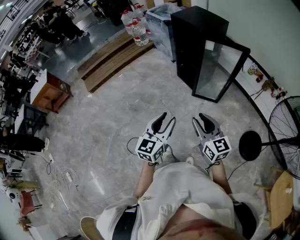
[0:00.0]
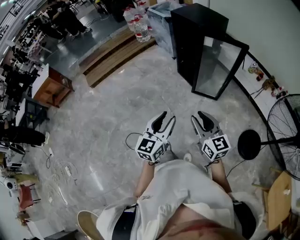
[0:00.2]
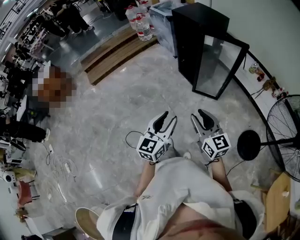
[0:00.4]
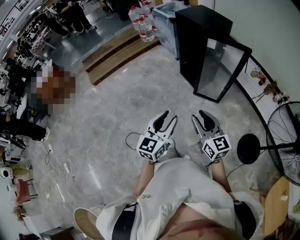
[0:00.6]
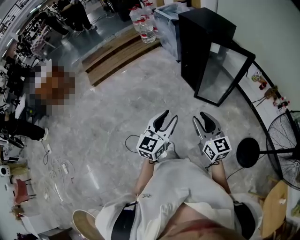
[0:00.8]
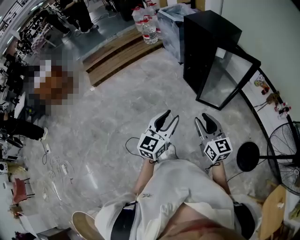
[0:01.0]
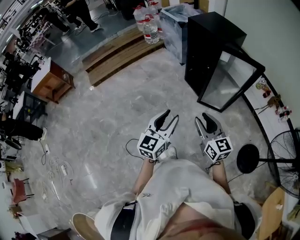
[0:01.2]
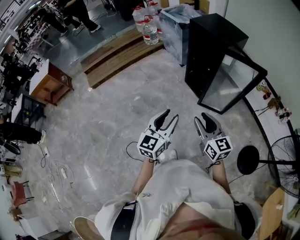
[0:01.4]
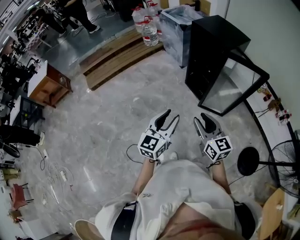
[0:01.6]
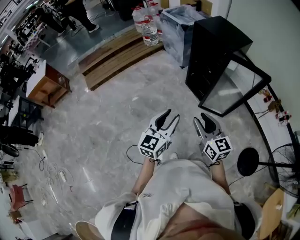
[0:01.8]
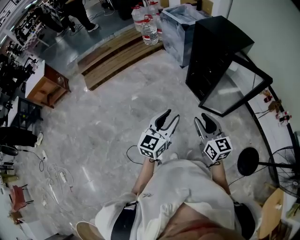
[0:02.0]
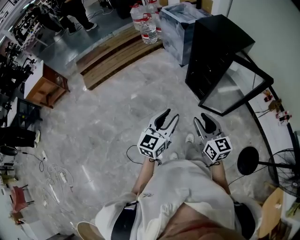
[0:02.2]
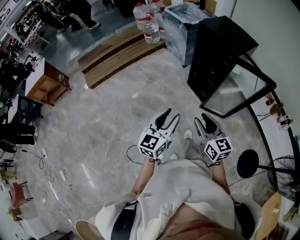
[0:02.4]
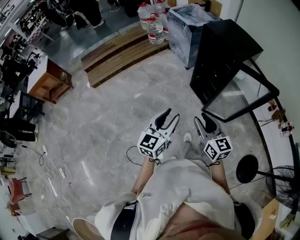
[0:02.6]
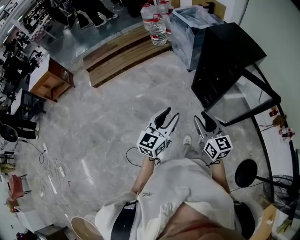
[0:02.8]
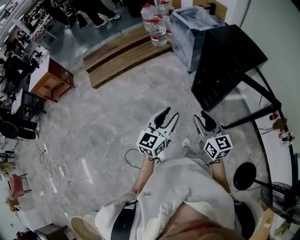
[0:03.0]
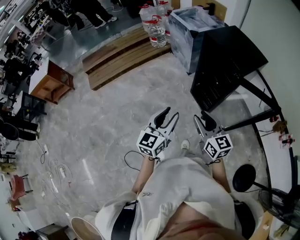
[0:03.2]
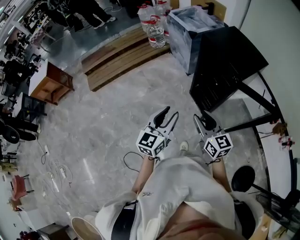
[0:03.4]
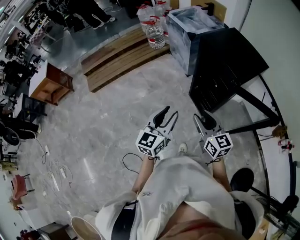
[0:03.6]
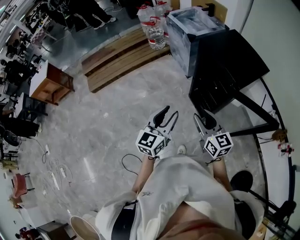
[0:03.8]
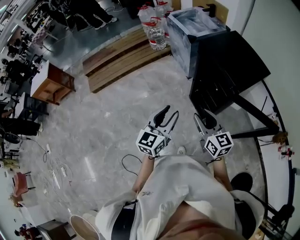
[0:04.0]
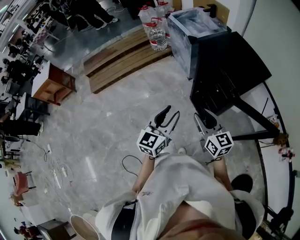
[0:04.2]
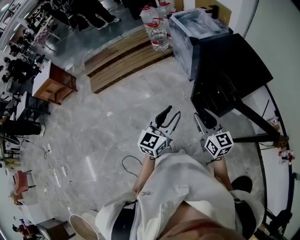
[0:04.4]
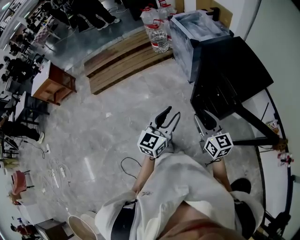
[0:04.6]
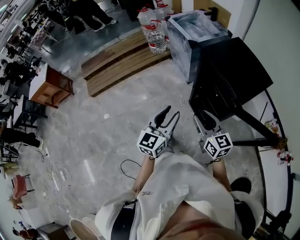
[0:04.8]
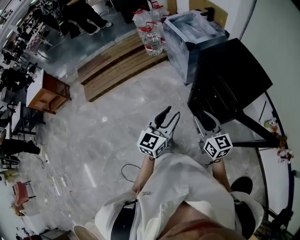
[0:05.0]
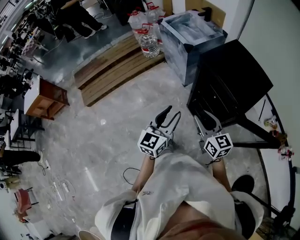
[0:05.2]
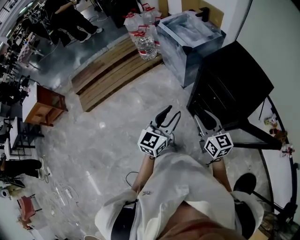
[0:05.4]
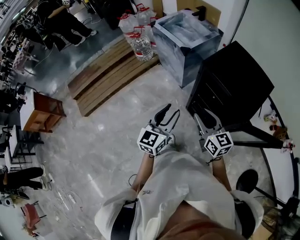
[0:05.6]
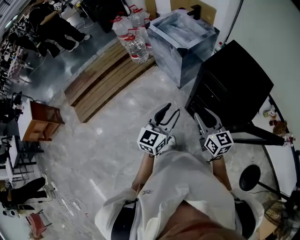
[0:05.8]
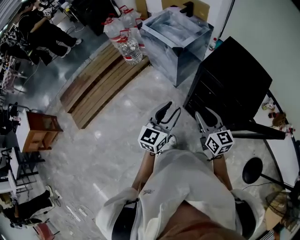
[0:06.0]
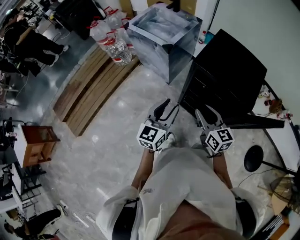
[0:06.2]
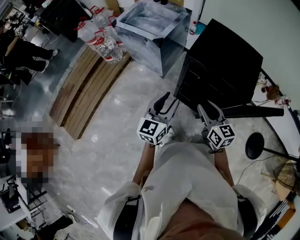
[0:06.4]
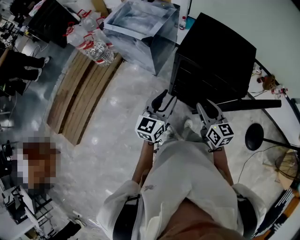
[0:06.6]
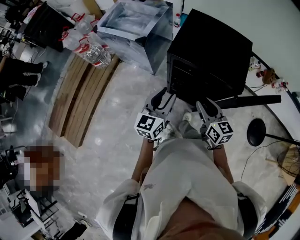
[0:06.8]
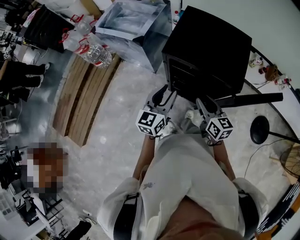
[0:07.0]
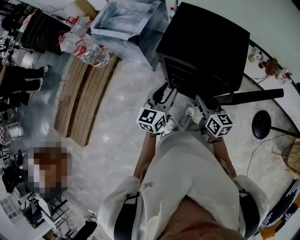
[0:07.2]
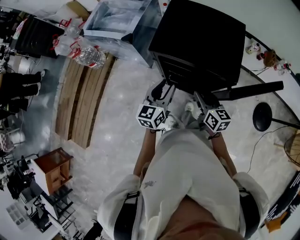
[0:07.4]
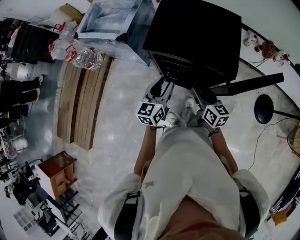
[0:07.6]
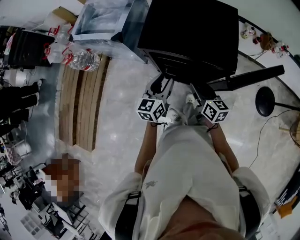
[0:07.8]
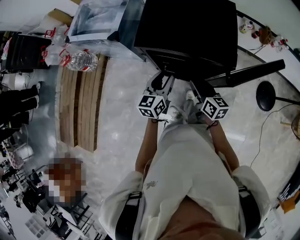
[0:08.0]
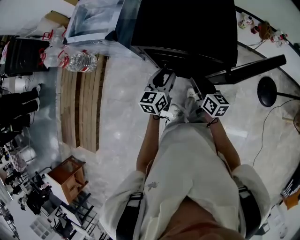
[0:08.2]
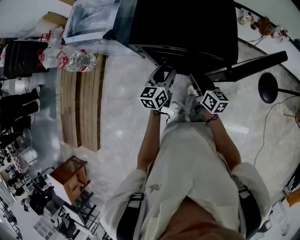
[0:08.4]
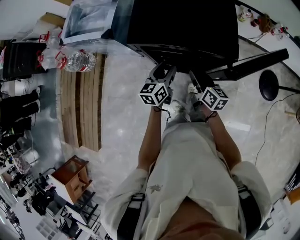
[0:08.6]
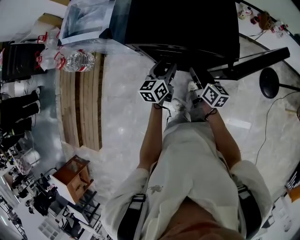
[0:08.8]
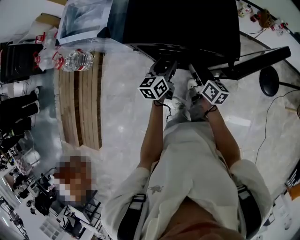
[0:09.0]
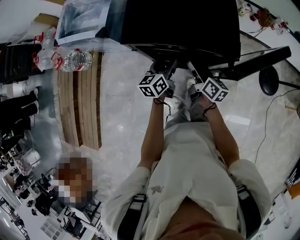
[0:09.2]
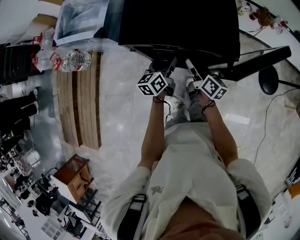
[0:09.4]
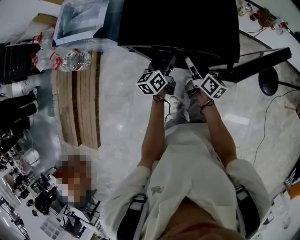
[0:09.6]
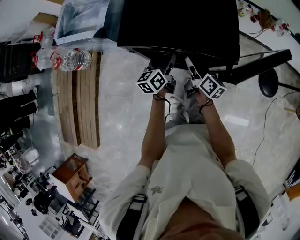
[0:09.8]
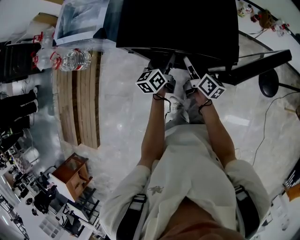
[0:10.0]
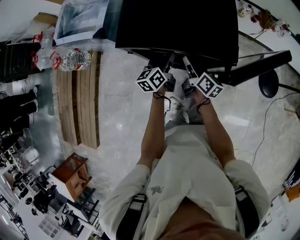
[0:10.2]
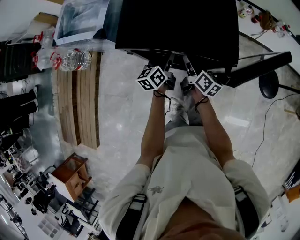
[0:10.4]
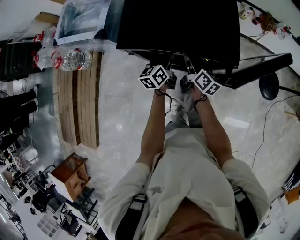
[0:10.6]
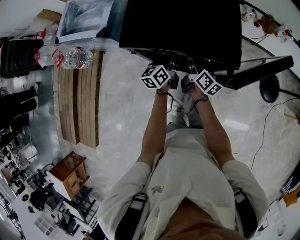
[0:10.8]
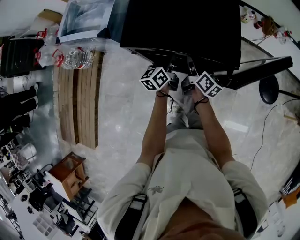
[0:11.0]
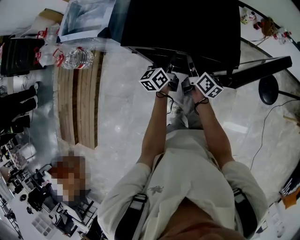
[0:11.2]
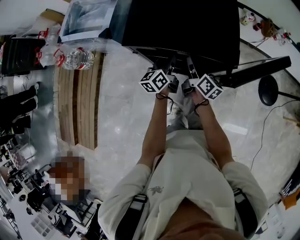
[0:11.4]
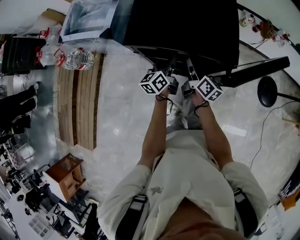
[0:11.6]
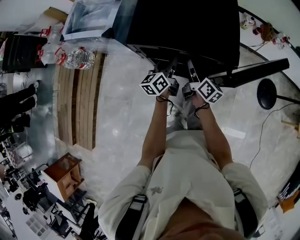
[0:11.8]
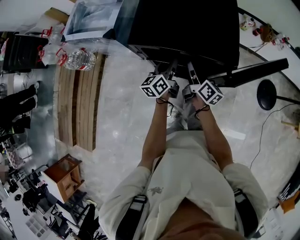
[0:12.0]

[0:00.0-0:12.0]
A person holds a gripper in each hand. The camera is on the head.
0:00.0 to 0:01.6: The grippers both shift forward and to the left by approximately 15 cm.
0:01.6 to 0:03.0: Both grippers travel together forward, roughly 15 cm.
0:03.0 to 0:04.4: Both grippers travel together forward and to the right, about 20 cm.
0:04.4 to 0:06.0: The grippers both shift forward by approximately 20 cm. The left gripper swivels approximately 20 degrees. The right gripper changes its angle by approximately 20 degrees.
0:06.0 to 0:07.6: The left gripper shifts about 20 cm to the right, downward and forward, and rotates about 20 degrees; the right gripper moves to the right and downward, some 20 cm, and rotates approximately 30 degrees.
0:07.6 to 0:09.0: The right gripper is displaced downward by about 5 cm, and turns by some 20 degrees. Meanwhile the left gripper heads downward and forward, covering approximately 10 cm.
0:09.0 to 0:10.4: The grippers both shift forward by some 5 cm.
0:10.4 to 0:12.0: The left gripper closes; the right gripper closes.

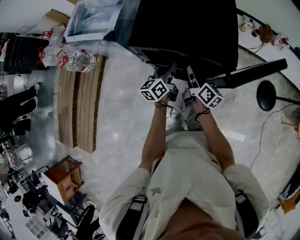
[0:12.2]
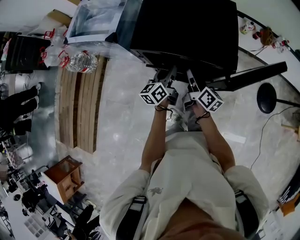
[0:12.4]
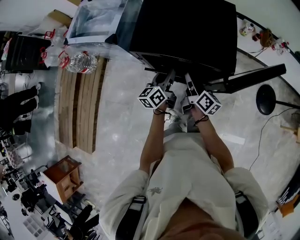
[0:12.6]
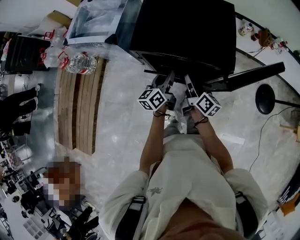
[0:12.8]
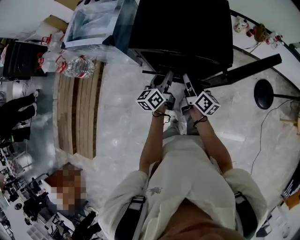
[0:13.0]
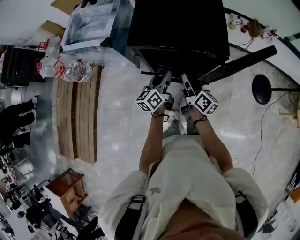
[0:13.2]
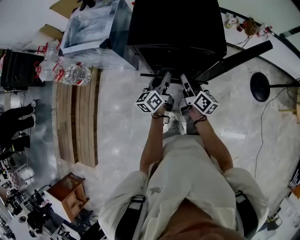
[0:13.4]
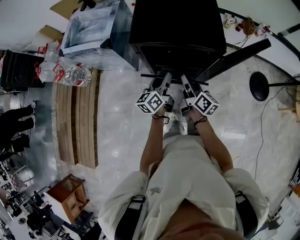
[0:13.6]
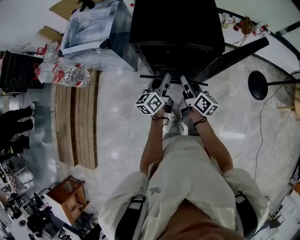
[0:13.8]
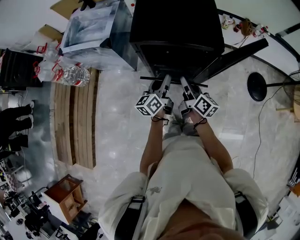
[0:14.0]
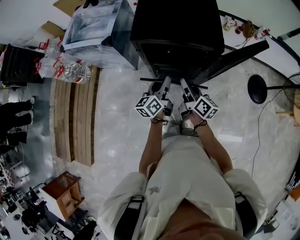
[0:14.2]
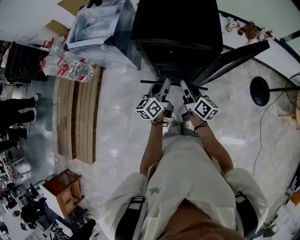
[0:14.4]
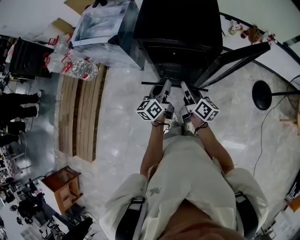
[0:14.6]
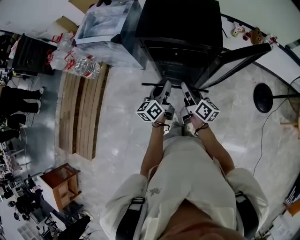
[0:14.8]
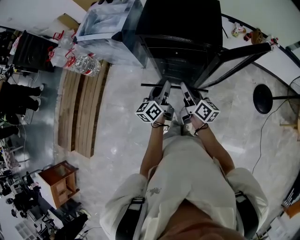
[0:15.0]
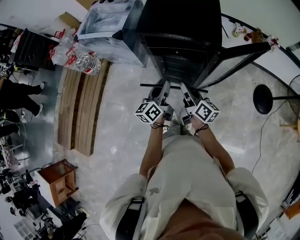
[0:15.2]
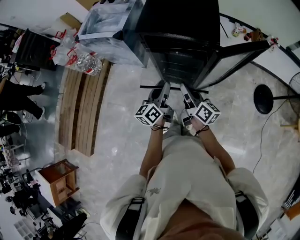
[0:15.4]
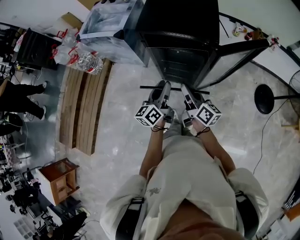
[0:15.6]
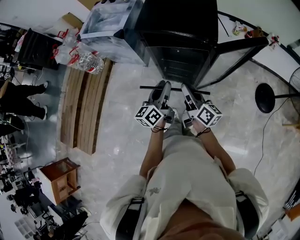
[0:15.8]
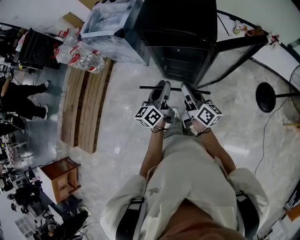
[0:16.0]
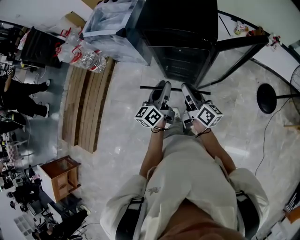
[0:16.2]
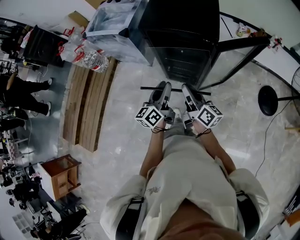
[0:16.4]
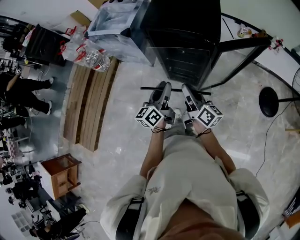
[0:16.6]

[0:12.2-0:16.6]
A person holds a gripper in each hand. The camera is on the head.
0:12.2 to 0:13.6: The two grippers go roughly 10 cm backward.
0:13.6 to 0:15.2: The grippers both shift backward by about 10 cm.
0:15.2 to 0:16.6: The grippers both shift backward by roughly 5 cm.

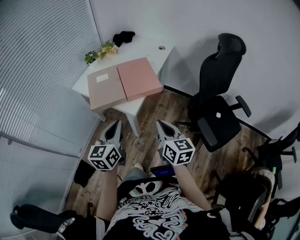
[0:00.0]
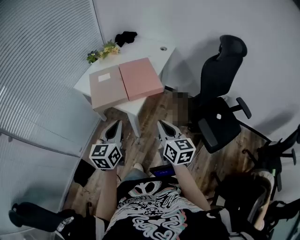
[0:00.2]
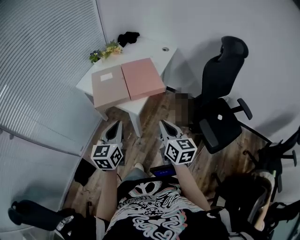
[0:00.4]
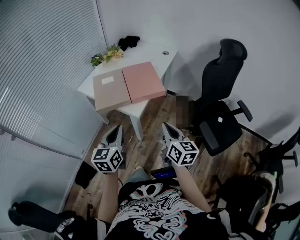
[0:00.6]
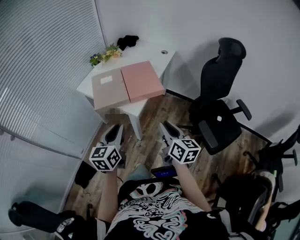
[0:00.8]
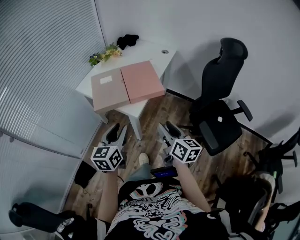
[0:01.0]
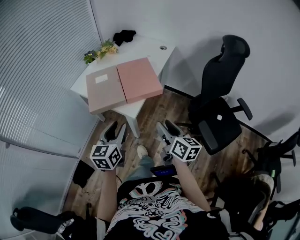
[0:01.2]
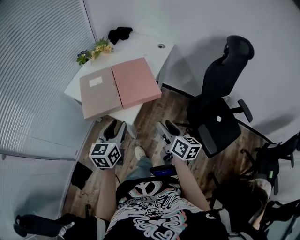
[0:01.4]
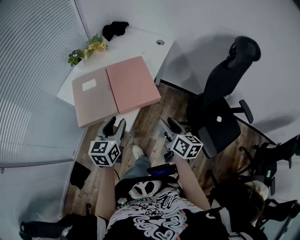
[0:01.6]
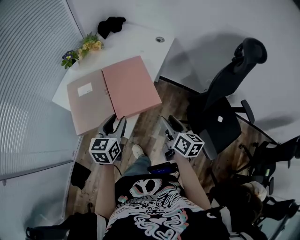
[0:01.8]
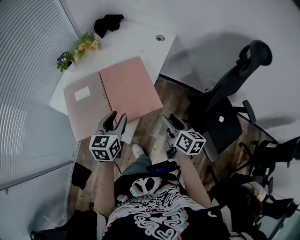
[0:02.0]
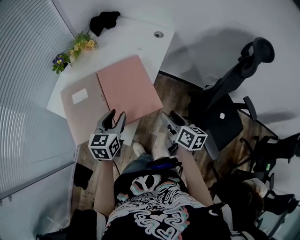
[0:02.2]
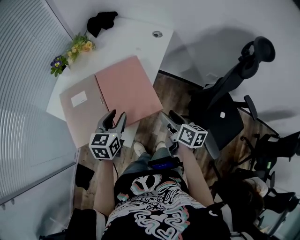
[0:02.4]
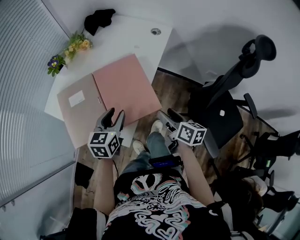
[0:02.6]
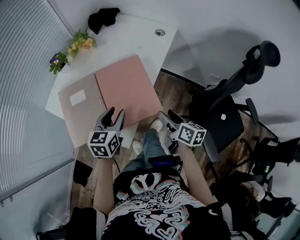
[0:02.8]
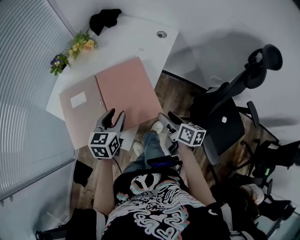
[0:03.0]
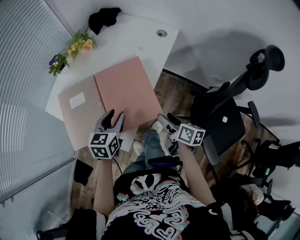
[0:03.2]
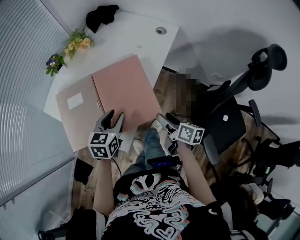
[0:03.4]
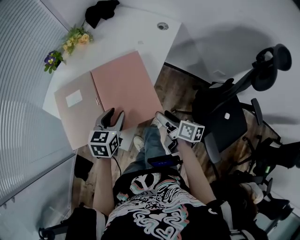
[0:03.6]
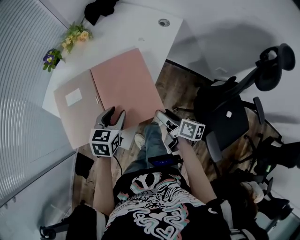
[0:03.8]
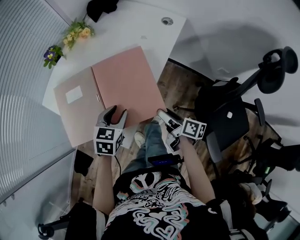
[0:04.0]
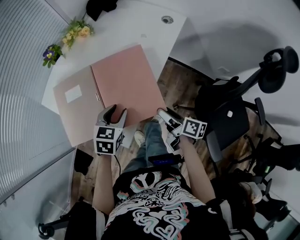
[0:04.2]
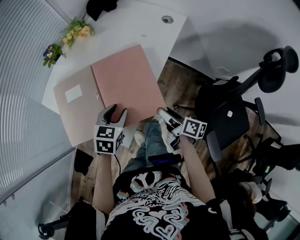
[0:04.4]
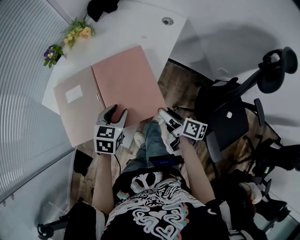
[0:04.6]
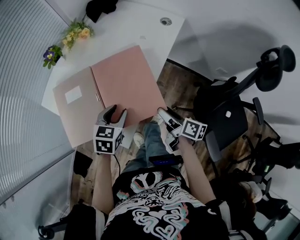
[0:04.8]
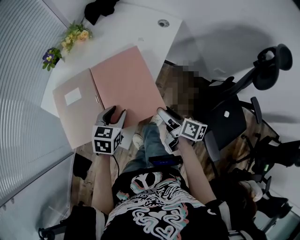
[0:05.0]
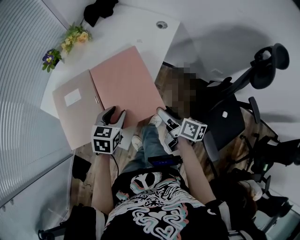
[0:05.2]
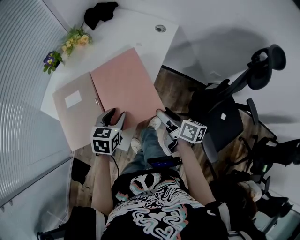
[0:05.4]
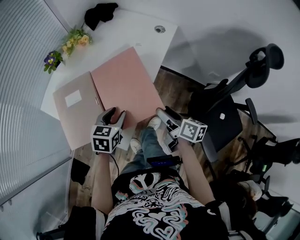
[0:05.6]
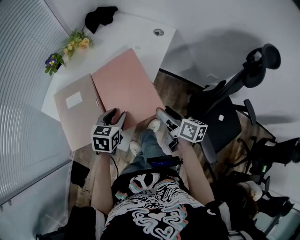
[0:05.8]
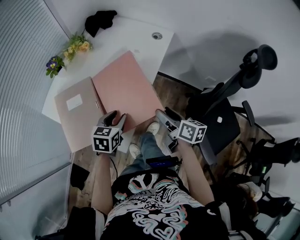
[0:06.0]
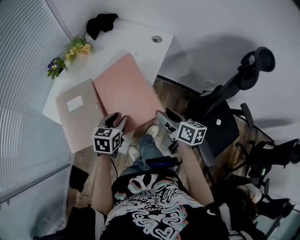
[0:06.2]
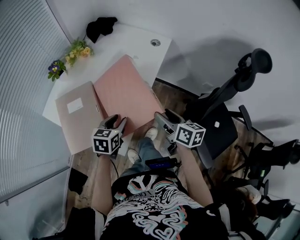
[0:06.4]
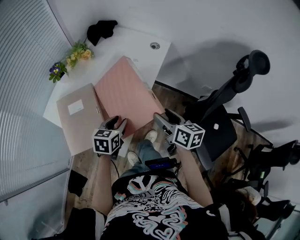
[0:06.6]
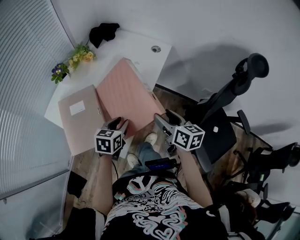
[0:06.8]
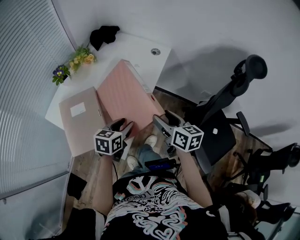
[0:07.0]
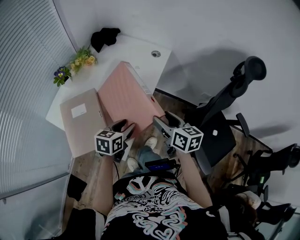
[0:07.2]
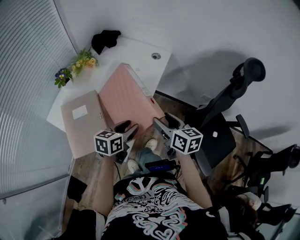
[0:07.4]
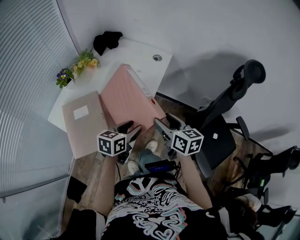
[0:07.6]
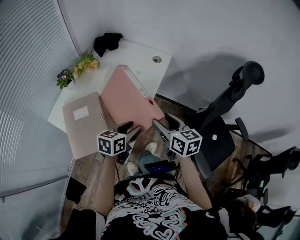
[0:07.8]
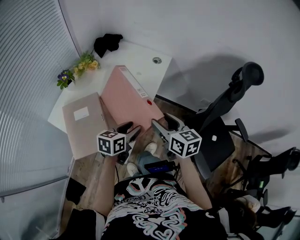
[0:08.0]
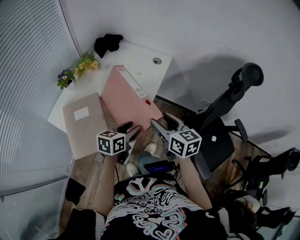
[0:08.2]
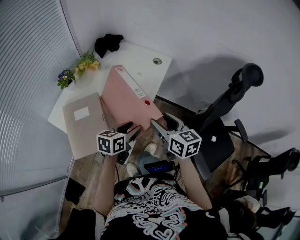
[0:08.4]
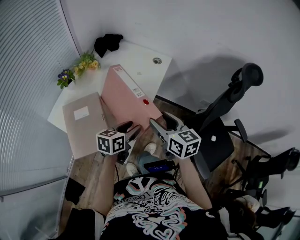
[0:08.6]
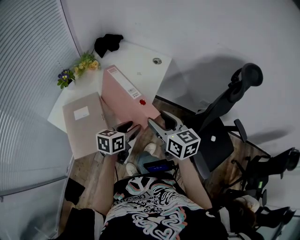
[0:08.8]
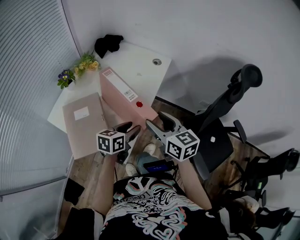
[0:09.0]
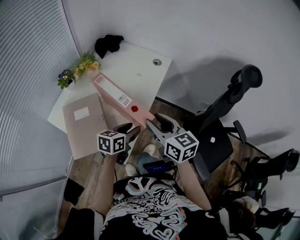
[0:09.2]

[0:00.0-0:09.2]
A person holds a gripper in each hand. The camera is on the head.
0:00.0 to 0:01.6: The right gripper is displaced forward, downward and to the right by roughly 20 cm, changes its angle by roughly 20 degrees, and opens up. Meanwhile the left gripper heads forward and downward, covering approximately 15 cm, and opens.
0:01.6 to 0:03.0: Both grippers move forward and downward, roughly 15 cm.
0:03.0 to 0:04.6: The left gripper ends up some 5 cm from where it was.
0:04.6 to 0:06.2: The right gripper moves upward, roughly 10 cm, and changes its angle by some 20 degrees.
0:06.2 to 0:07.6: The left gripper moves to the right and upward, approximately 10 cm, and rotates approximately 20 degrees. The right gripper goes roughly 5 cm upward.
0:07.6 to 0:09.2: The right gripper moves upward and to the left, roughly 10 cm.
